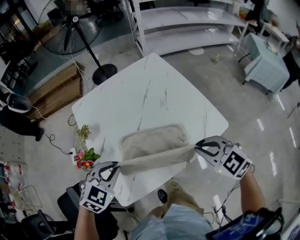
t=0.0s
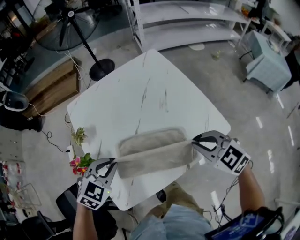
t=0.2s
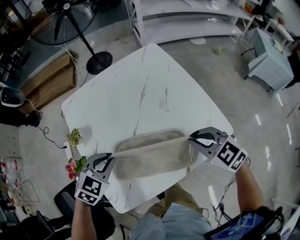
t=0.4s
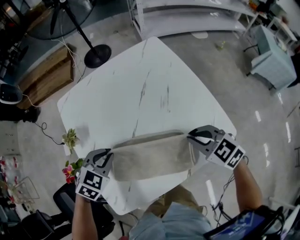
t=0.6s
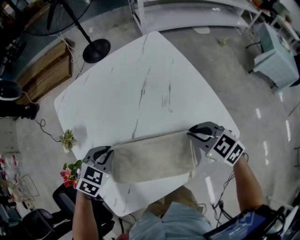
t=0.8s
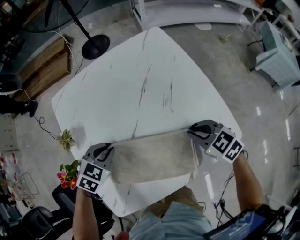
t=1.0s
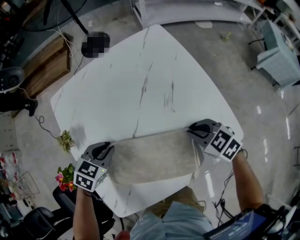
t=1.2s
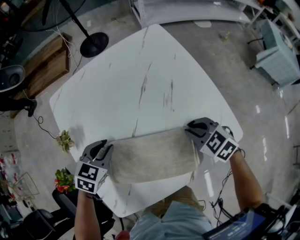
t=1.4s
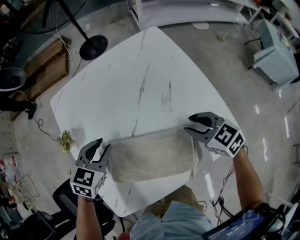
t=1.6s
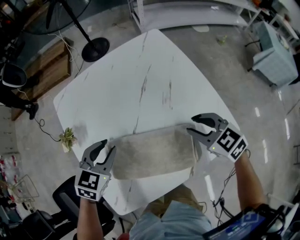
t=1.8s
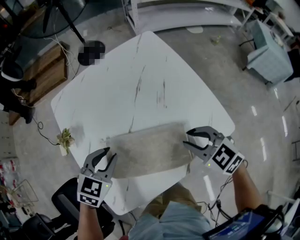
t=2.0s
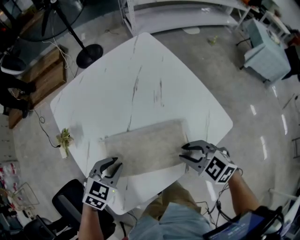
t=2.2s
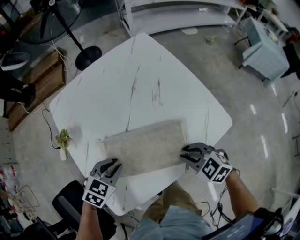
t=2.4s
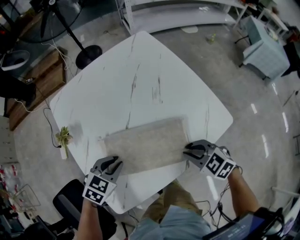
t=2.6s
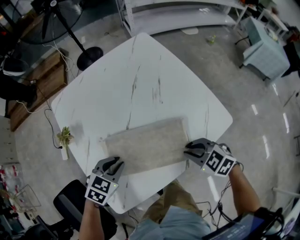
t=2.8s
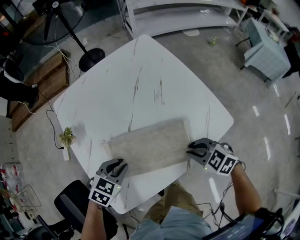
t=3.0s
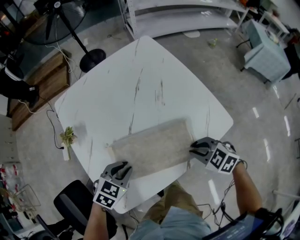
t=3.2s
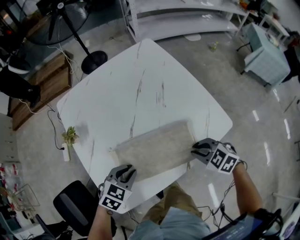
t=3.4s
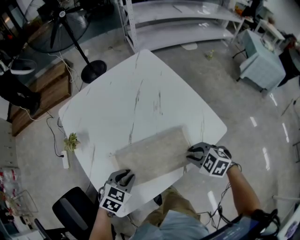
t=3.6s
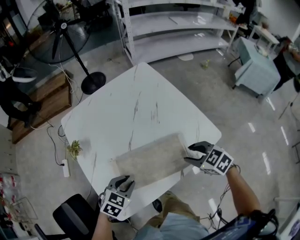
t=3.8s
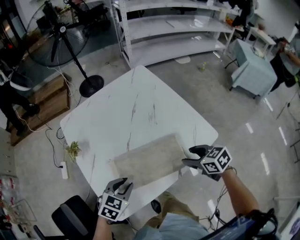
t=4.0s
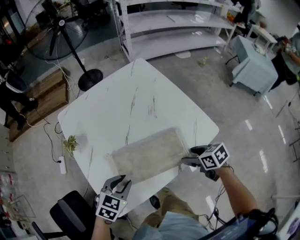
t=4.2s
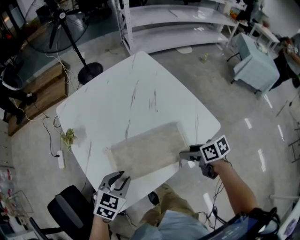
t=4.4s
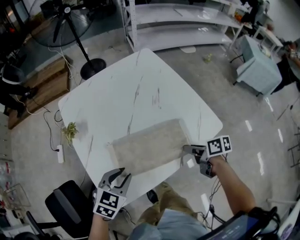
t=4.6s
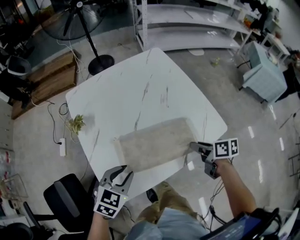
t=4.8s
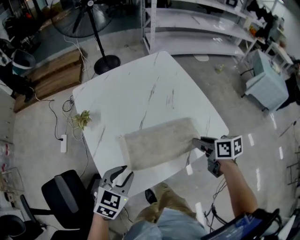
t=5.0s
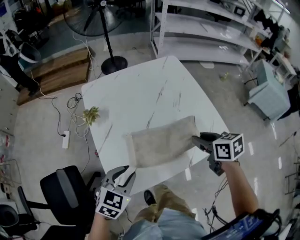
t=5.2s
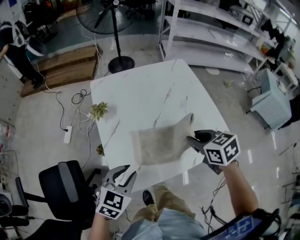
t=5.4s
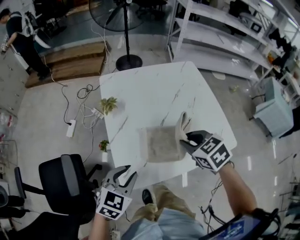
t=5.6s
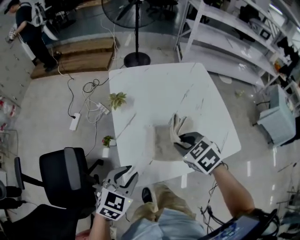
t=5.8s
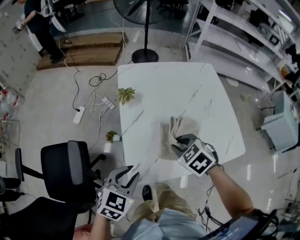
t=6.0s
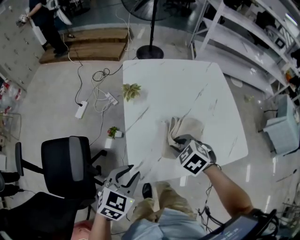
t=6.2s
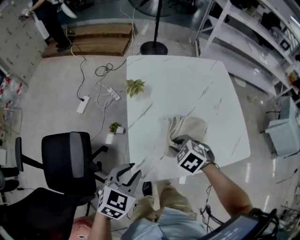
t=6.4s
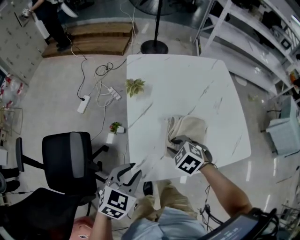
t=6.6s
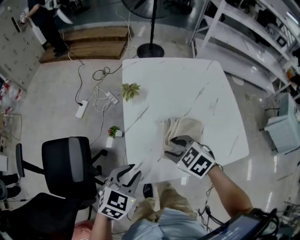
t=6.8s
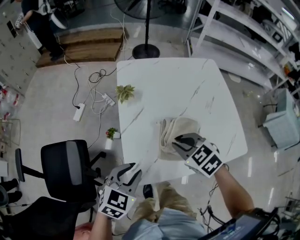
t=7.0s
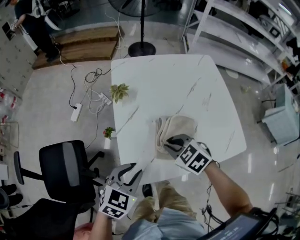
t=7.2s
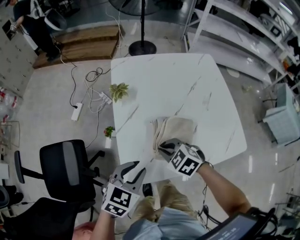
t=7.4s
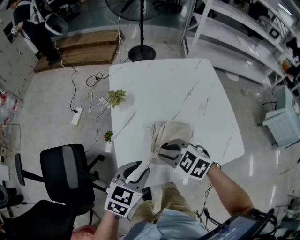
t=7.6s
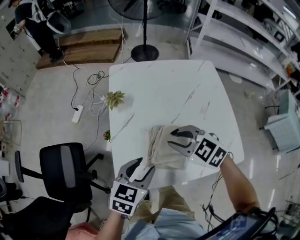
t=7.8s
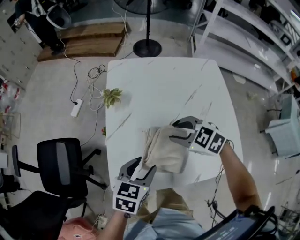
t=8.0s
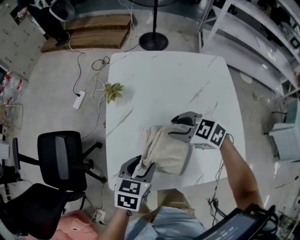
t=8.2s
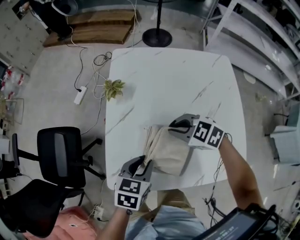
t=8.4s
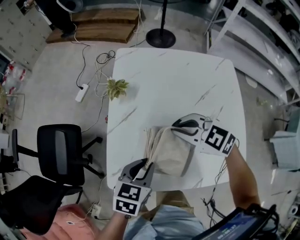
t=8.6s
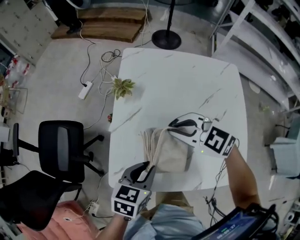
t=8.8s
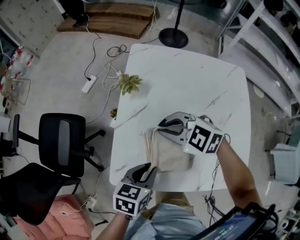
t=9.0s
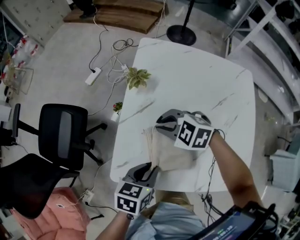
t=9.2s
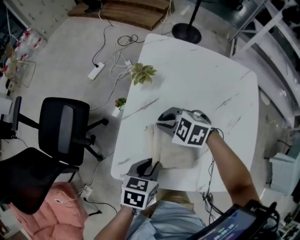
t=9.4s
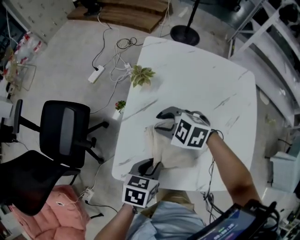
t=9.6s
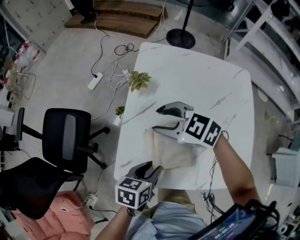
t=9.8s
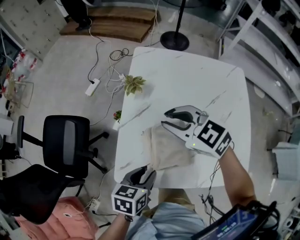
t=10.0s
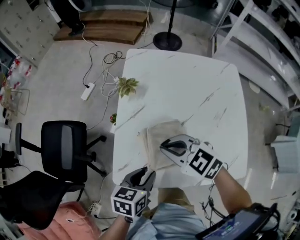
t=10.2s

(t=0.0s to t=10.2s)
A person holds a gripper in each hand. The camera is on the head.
t=0.0s - t=1.4s: The two grippers go approximately 20 cm forward and downward. The left gripper rotates about 20 degrees.
t=1.4s - t=3.0s: The grippers both shift backward by approximately 15 cm.
t=3.0s - t=4.4s: The right gripper twists some 50 degrees clockwise, seen from behind, and opens. The left gripper travels backward by roughly 5 cm.
t=4.4s - t=5.8s: The left gripper shifts about 15 cm to the left, backward and upward, and swivels some 20 degrees; the right gripper is displaced to the left and upward by some 25 cm, rolls counterclockwise, seen from behind, by about 60 degrees, and closes up.
t=5.8s - t=7.2s: The right gripper goes up and down, some 10 cm each way, reversing 2 times, and opens, then closes again.
t=7.2s - t=8.8s: The right gripper travels forward and upward by about 10 cm, goes to the right and returns, some 10 cm each way, changes its angle by about 40 degrees, and opens, then closes again. Meanwhile the left gripper is displaced to the right by approximately 10 cm, rotates roughly 40 degrees, and opens and closes again.
t=8.8s - t=10.2s: The right gripper moves up and down over roughly 15 cm, changing direction 2 times, and opens, then closes again.

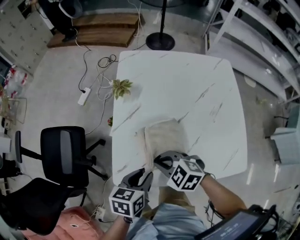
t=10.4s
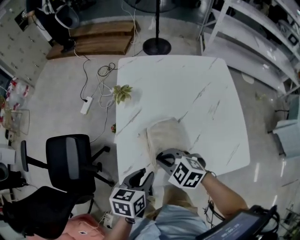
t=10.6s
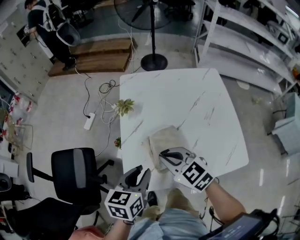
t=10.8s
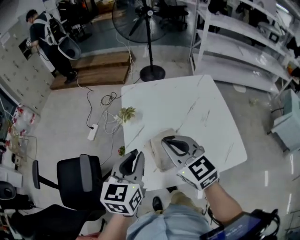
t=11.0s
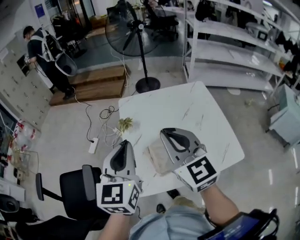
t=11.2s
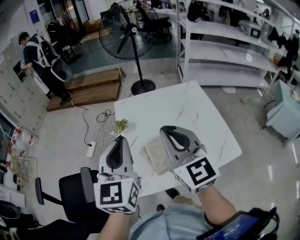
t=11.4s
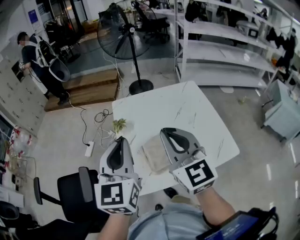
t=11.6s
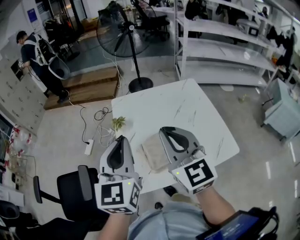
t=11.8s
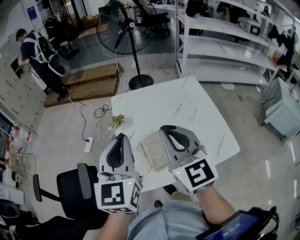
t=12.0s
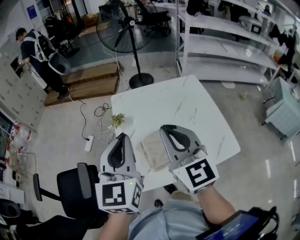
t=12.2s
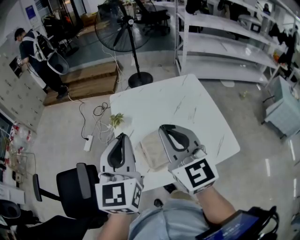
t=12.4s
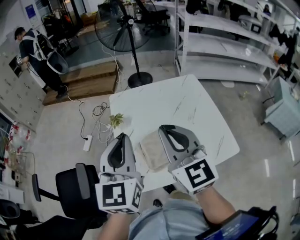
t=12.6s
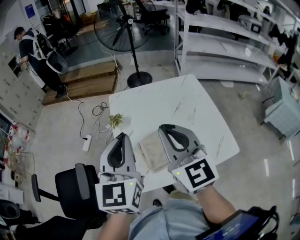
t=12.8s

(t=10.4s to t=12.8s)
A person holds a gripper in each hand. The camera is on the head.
t=10.4s - t=11.6s: The grippers both shift upward by roughly 30 cm. The left gripper angles its fingers upward, by about 40 degrees, and closes; the right gripper tips its fingers upward by roughly 50 degrees.
t=11.6s - t=12.8s: The grippers move only a little.

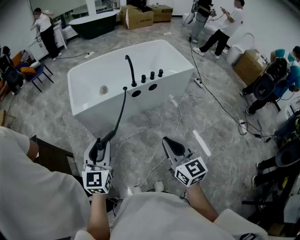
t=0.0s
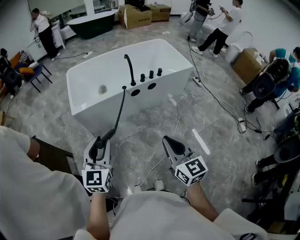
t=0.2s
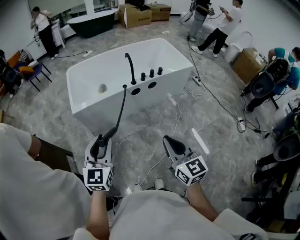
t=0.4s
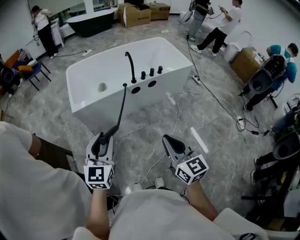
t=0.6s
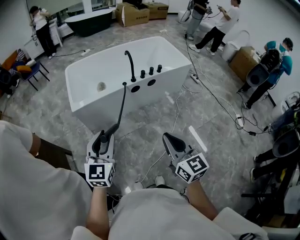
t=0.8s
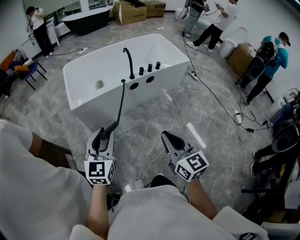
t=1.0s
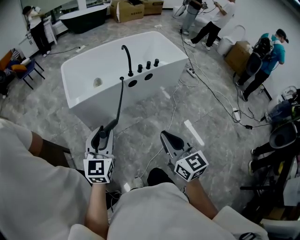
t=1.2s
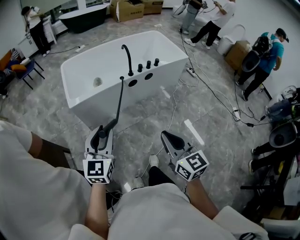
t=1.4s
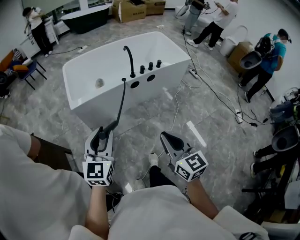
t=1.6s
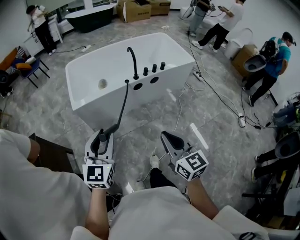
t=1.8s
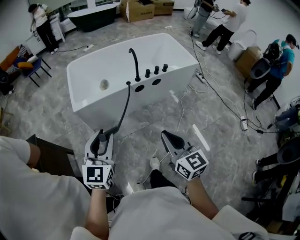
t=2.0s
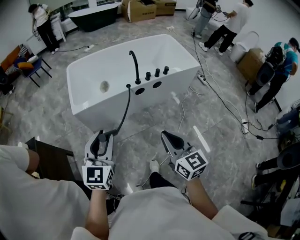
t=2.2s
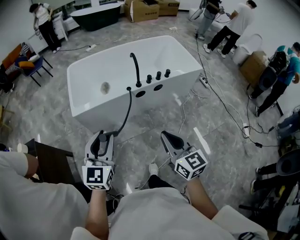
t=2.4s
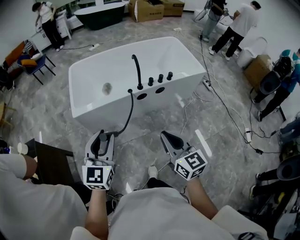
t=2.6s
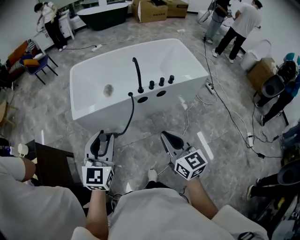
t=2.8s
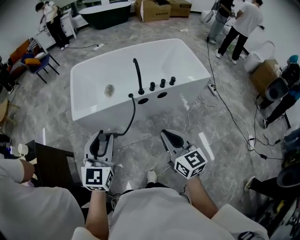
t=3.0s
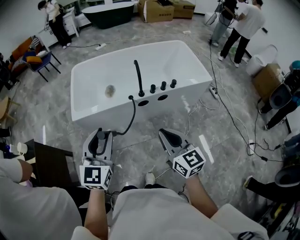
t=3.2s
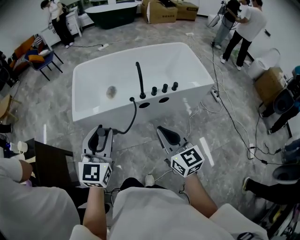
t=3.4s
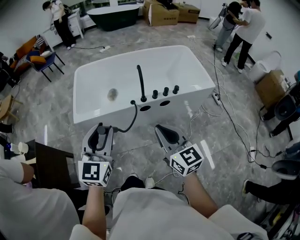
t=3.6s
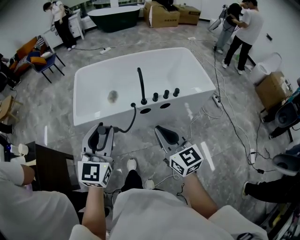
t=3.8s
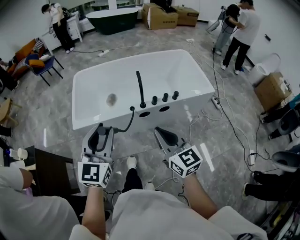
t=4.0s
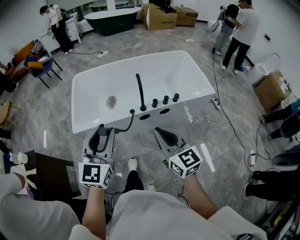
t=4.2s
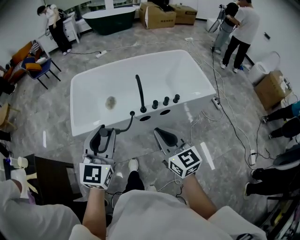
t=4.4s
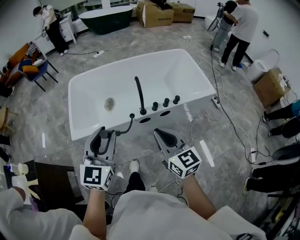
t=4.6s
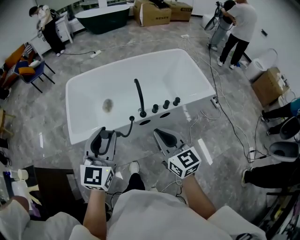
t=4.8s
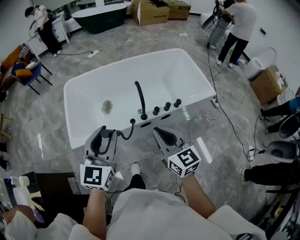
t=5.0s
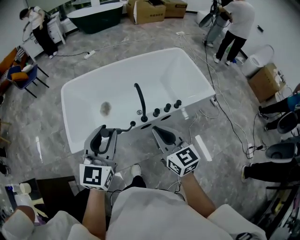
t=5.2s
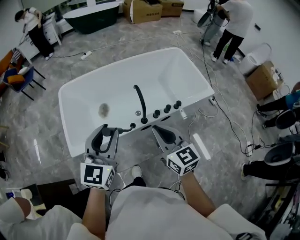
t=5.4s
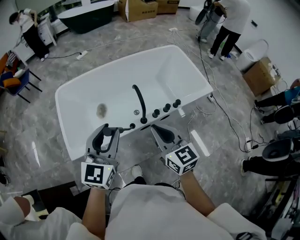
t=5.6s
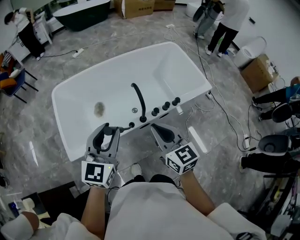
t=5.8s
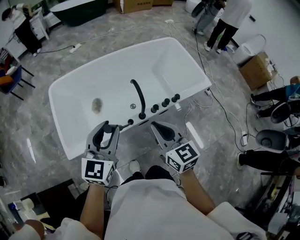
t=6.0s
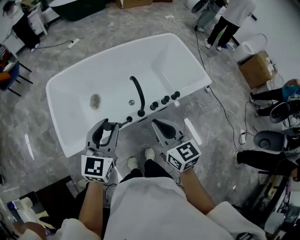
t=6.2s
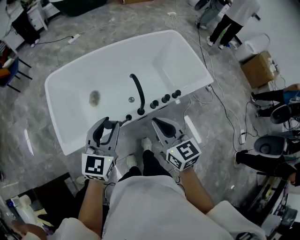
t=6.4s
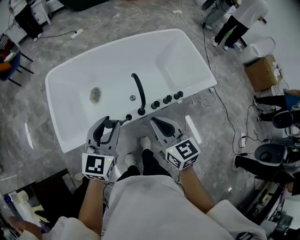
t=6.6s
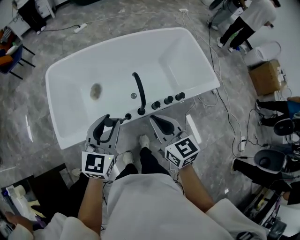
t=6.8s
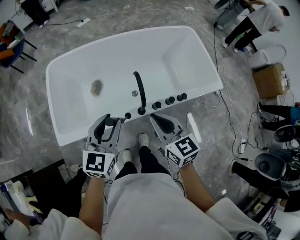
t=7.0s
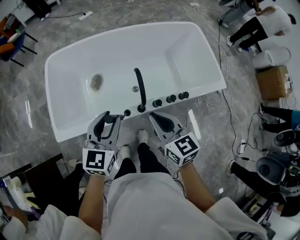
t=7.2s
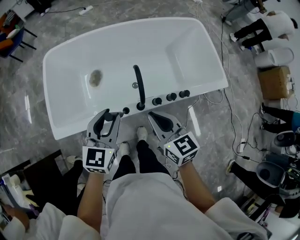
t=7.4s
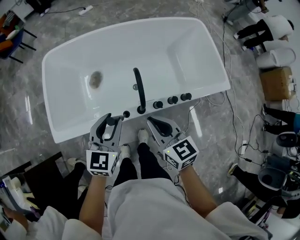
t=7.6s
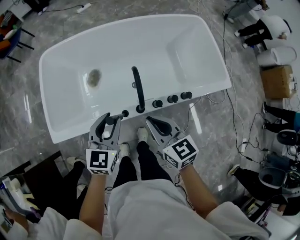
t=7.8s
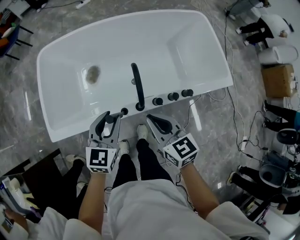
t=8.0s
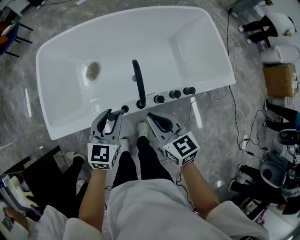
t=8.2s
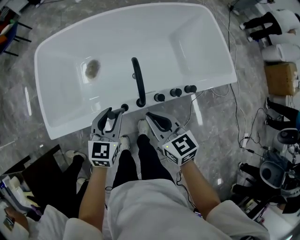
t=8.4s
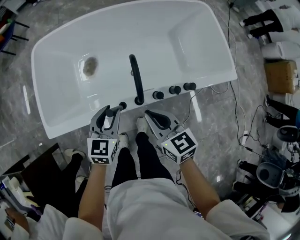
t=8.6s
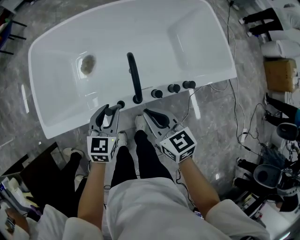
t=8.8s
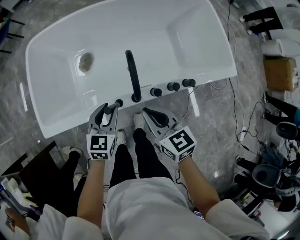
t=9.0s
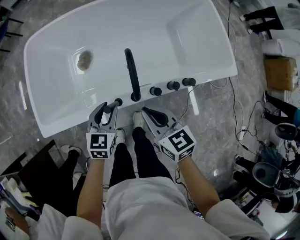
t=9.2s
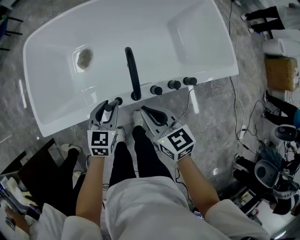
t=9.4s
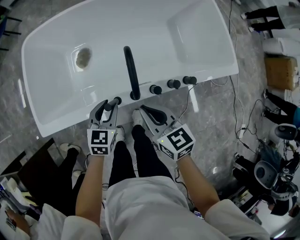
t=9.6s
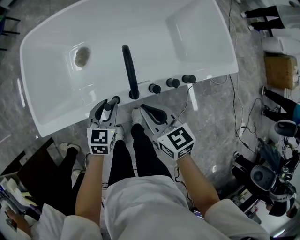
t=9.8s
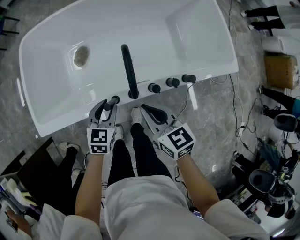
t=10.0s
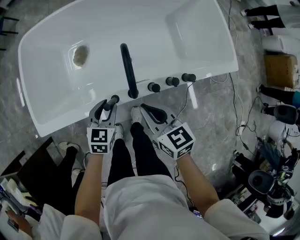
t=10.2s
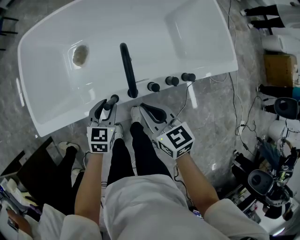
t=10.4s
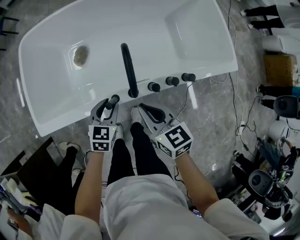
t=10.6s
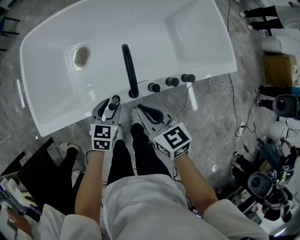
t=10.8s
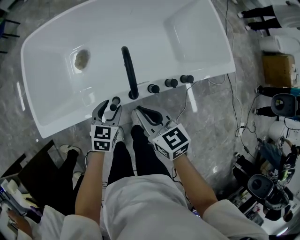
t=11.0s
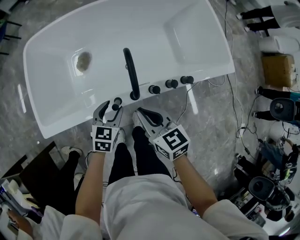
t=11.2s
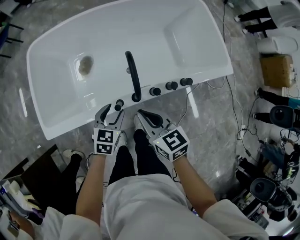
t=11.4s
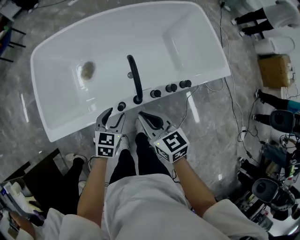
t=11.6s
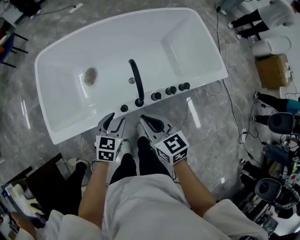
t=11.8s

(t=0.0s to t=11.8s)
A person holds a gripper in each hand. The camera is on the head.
t=0.0s - t=1.4s: The right gripper moves to the left, approximately 5 cm.
t=1.4s - t=3.0s: The two grippers go approximately 25 cm forward and to the right.
t=3.0s - t=4.4s: Both grippers move forward, about 15 cm.
t=4.4s - t=6.0s: Both grippers travel together forward, roughly 20 cm.
t=6.0s - t=7.4s: The left gripper heads downward, forward and to the right, covering some 15 cm. Meanwhile the right gripper heads forward and downward, covering about 15 cm.
t=7.4s - t=8.8s: The left gripper heads downward, covering about 15 cm. The right gripper heads downward, covering approximately 10 cm.
t=8.8s - t=10.4s: The left gripper is displaced downward by approximately 10 cm.
t=10.4s - t=11.8s: The grippers both shift upward by approximately 5 cm.
